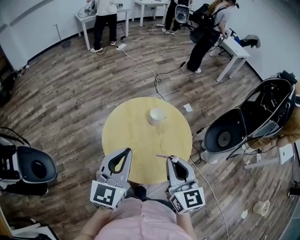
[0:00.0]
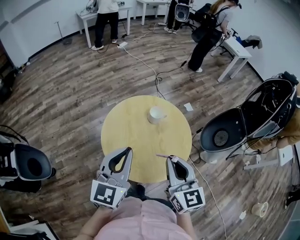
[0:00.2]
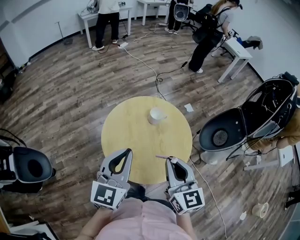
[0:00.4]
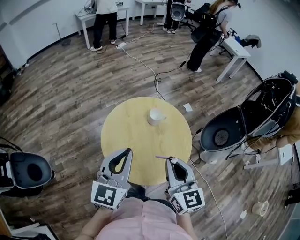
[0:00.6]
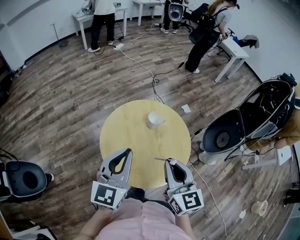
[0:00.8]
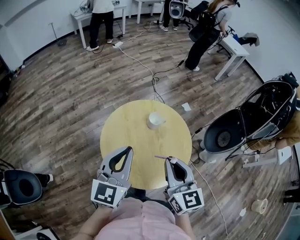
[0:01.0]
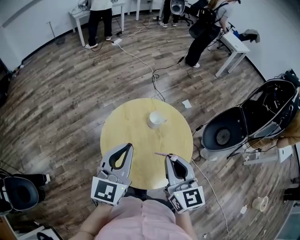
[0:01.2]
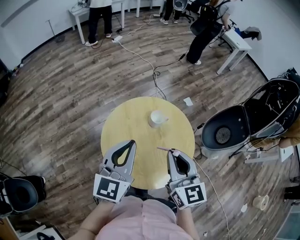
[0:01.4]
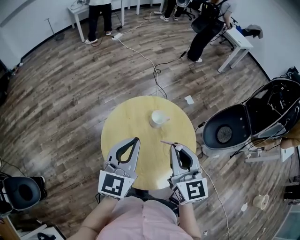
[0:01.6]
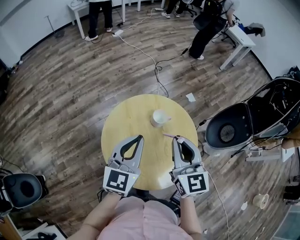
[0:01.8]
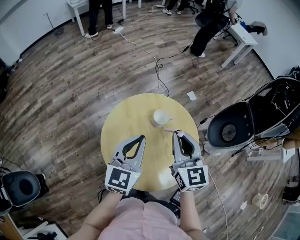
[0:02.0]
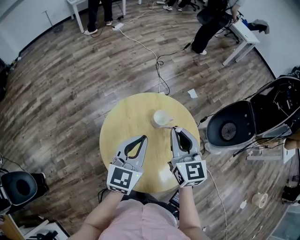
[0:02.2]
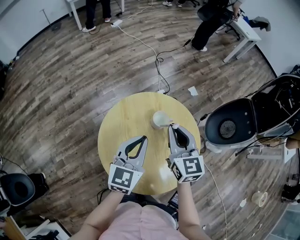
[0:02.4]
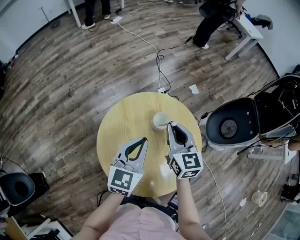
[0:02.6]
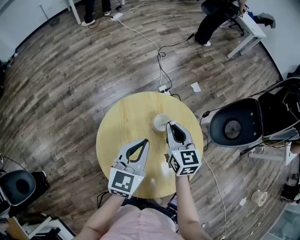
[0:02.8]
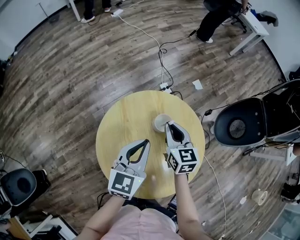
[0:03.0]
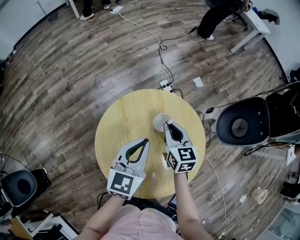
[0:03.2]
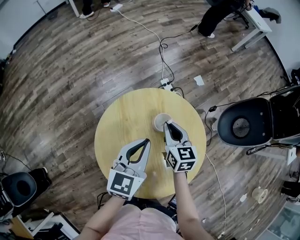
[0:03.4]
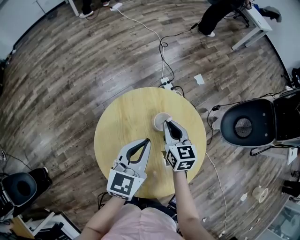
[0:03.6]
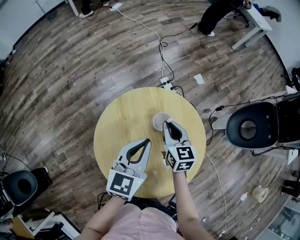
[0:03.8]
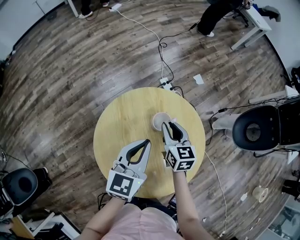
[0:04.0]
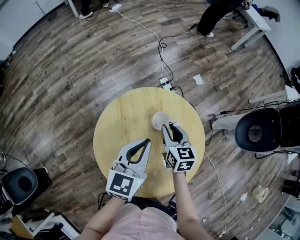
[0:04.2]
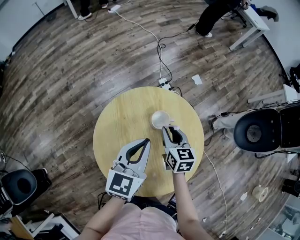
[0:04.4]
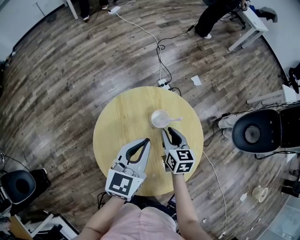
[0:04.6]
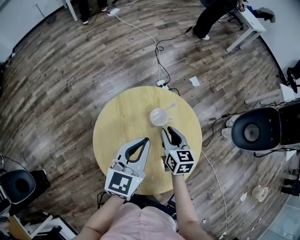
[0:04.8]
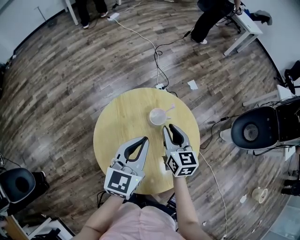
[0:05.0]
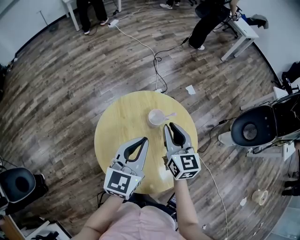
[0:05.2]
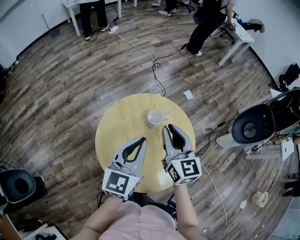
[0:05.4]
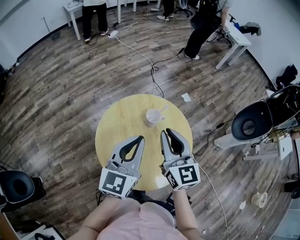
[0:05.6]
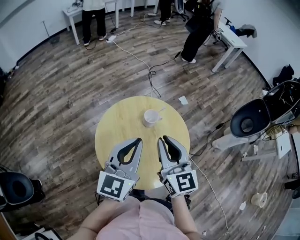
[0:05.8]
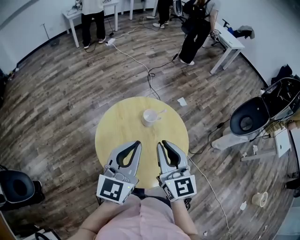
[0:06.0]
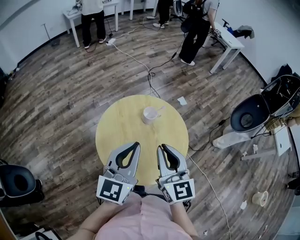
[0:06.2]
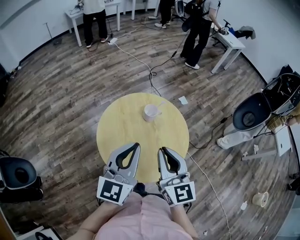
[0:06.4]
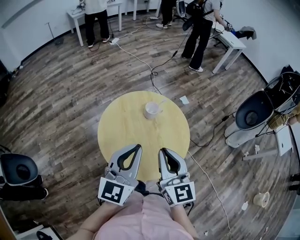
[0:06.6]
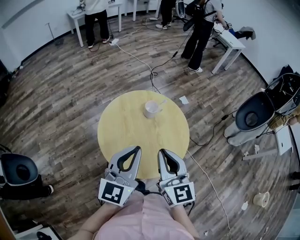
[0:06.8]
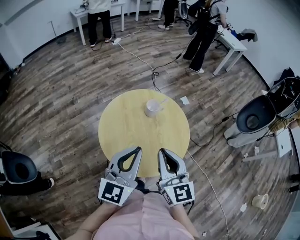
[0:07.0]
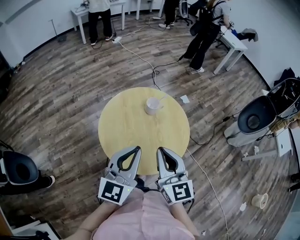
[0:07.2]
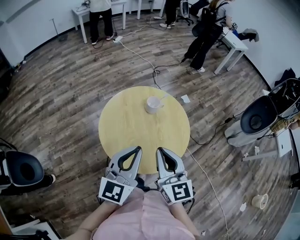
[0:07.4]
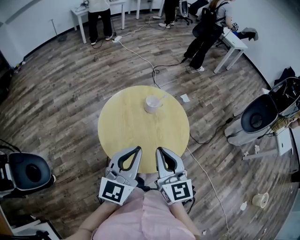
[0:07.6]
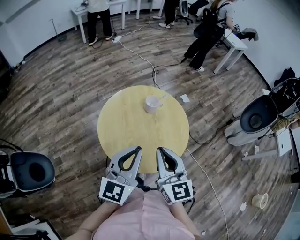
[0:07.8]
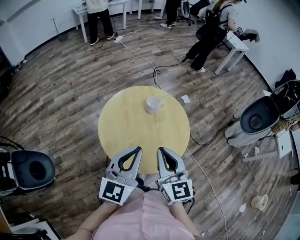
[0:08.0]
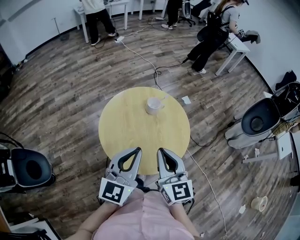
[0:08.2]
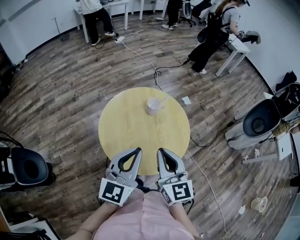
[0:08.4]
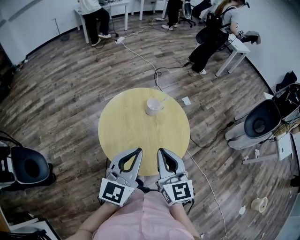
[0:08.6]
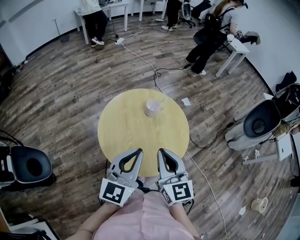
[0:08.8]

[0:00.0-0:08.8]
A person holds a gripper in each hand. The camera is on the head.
0:00.0 to 0:01.4: Both grippers move forward, some 10 cm.
0:01.4 to 0:03.0: The left gripper goes roughly 20 cm downward and forward; the right gripper heads forward and downward, covering some 30 cm.
0:03.0 to 0:04.4: The right gripper heads downward, covering roughly 5 cm.
0:04.4 to 0:05.8: The left gripper travels upward and backward by about 15 cm, while the right gripper shifts some 30 cm upward and backward, and turns by about 30 degrees.
0:05.8 to 0:07.4: The grippers both shift backward by some 15 cm.
0:07.4 to 0:08.8: There are only small adjustments of the grippers.

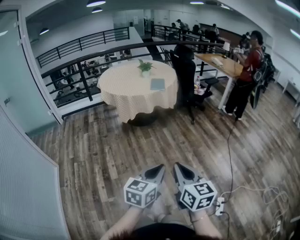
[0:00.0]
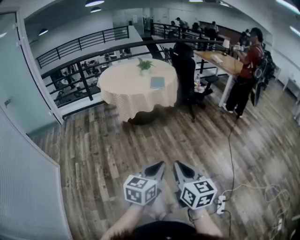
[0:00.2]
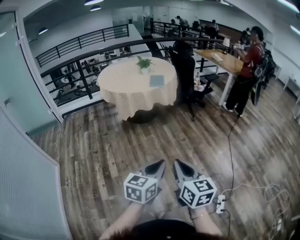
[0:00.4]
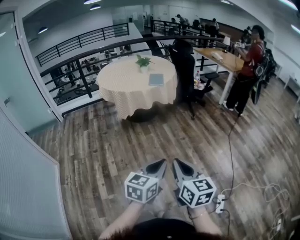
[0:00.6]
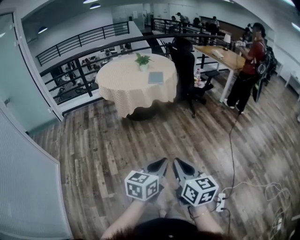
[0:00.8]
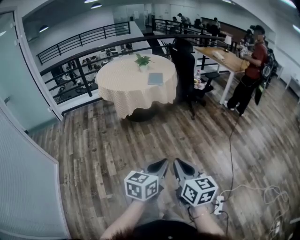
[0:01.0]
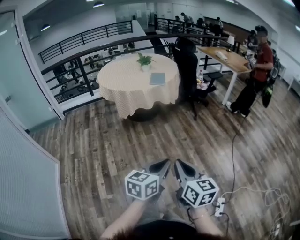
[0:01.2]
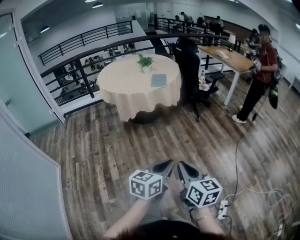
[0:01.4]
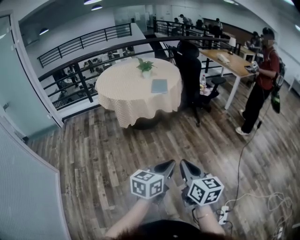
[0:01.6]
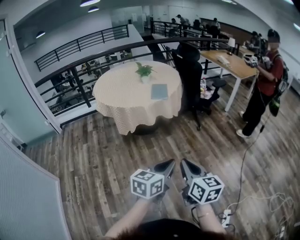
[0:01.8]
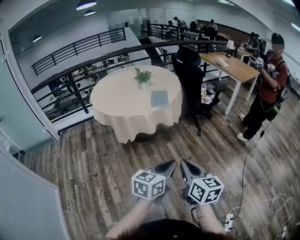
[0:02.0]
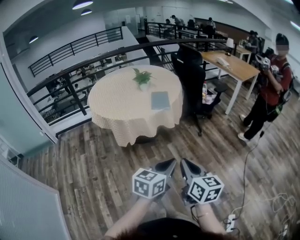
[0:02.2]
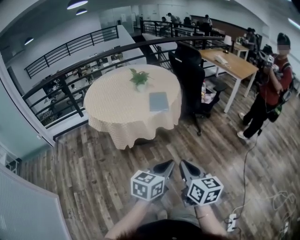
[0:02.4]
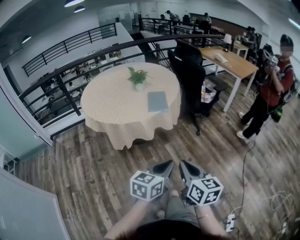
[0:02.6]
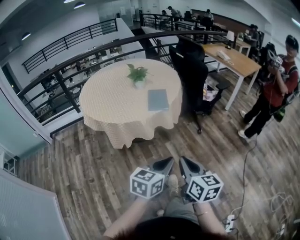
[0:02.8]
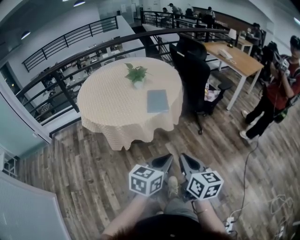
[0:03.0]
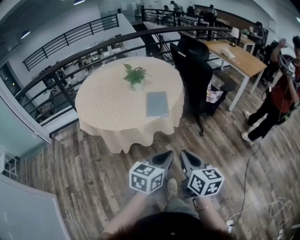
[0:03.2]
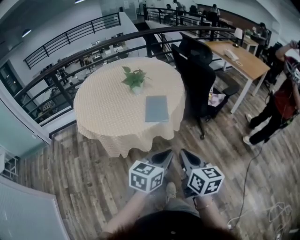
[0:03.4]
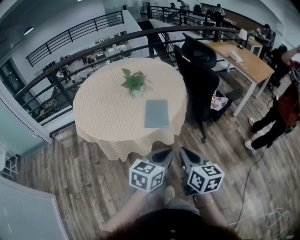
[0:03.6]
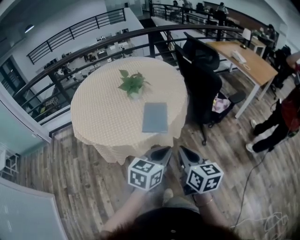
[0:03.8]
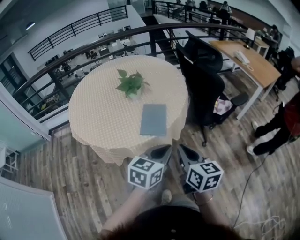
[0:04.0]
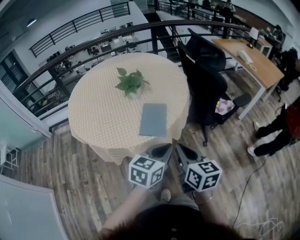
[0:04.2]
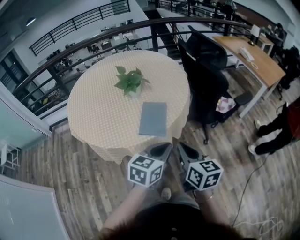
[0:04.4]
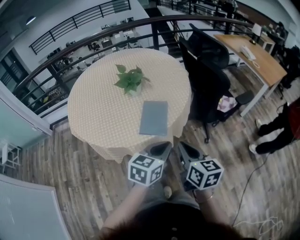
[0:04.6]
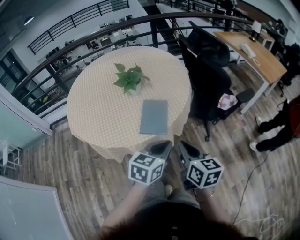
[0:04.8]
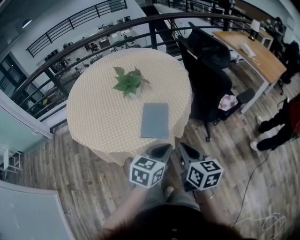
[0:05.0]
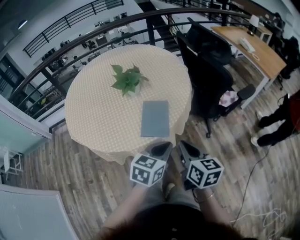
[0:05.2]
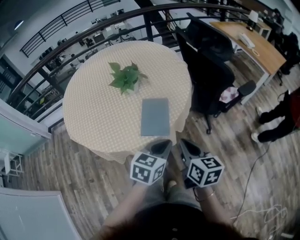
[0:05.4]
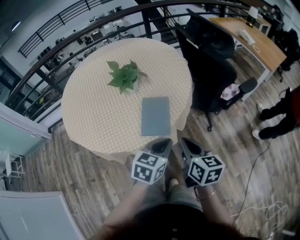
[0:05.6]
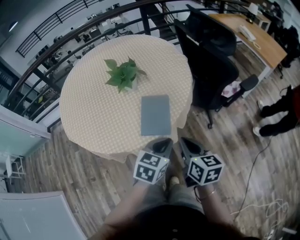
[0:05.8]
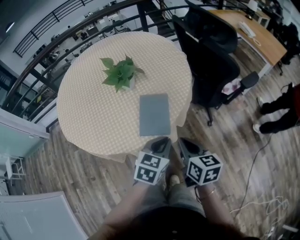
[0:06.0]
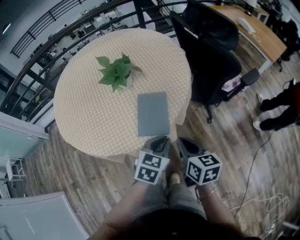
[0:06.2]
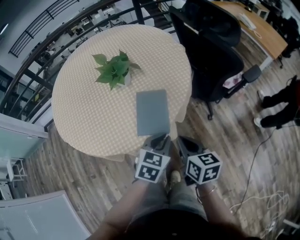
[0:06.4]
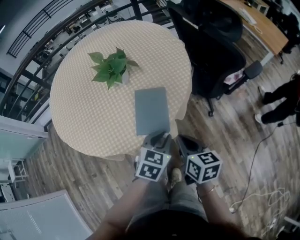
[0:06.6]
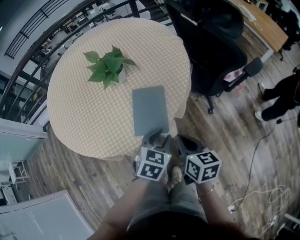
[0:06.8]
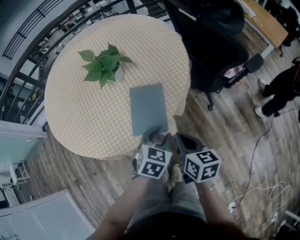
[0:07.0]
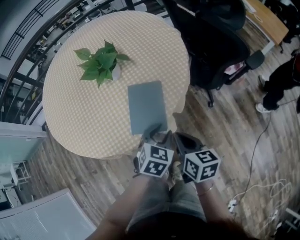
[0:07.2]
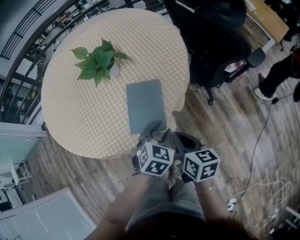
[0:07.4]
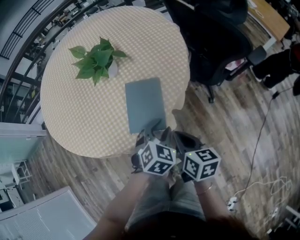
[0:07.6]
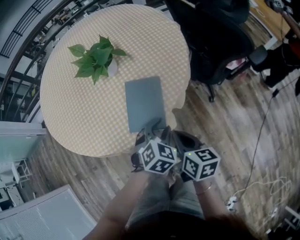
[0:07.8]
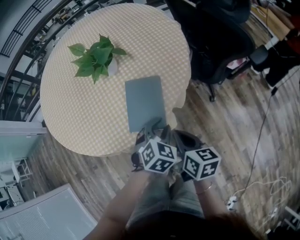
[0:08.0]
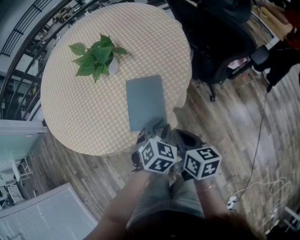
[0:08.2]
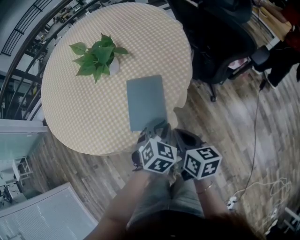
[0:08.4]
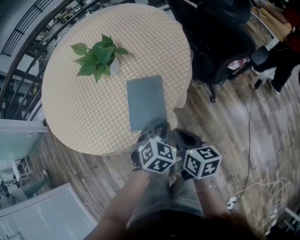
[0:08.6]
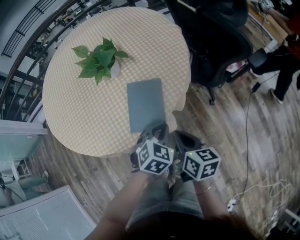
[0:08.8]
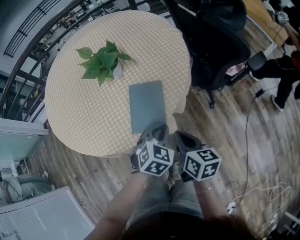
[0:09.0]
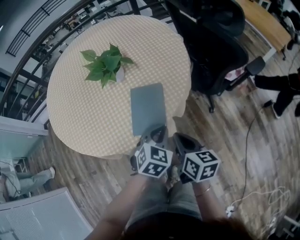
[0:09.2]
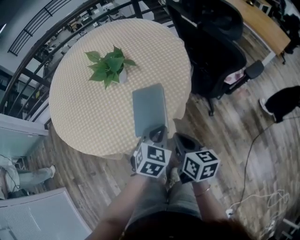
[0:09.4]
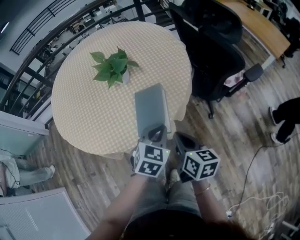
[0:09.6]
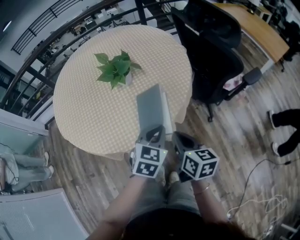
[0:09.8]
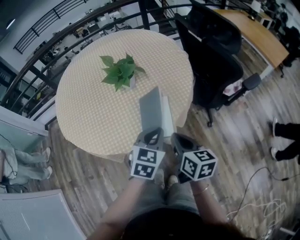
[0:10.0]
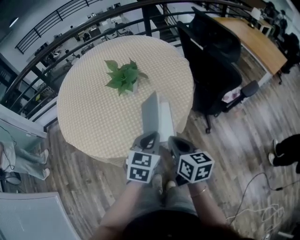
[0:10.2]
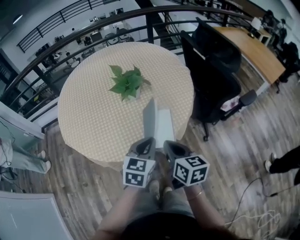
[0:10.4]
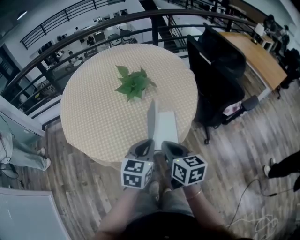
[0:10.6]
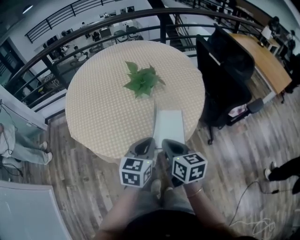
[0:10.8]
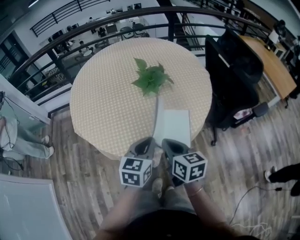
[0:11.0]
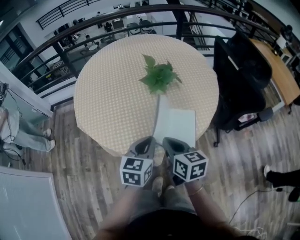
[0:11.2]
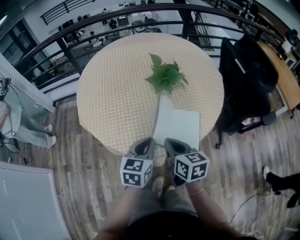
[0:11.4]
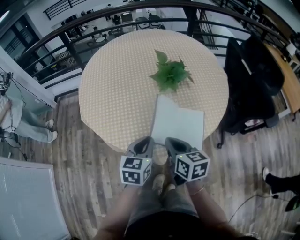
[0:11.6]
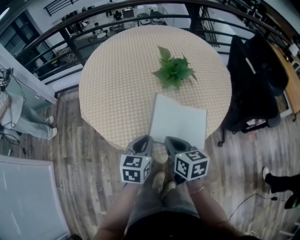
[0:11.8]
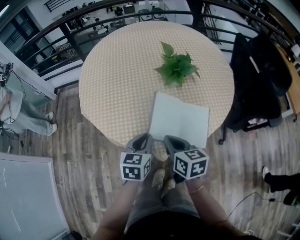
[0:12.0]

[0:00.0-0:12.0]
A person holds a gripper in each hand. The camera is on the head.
0:00.0 to 0:01.6: The two grippers go some 15 cm forward.
0:01.6 to 0:03.0: Both grippers move forward, some 30 cm.
0:03.0 to 0:04.4: Both grippers travel together forward, about 30 cm.
0:04.4 to 0:06.0: The two grippers go some 10 cm downward and forward.
0:06.0 to 0:07.6: The left gripper shifts some 10 cm downward and forward, turns by about 30 degrees, and opens its fingers. The right gripper shifts roughly 10 cm downward.
0:07.6 to 0:09.0: The left gripper closes.
0:09.0 to 0:10.4: Both grippers move upward and to the left, about 15 cm. The left gripper changes its angle by approximately 30 degrees.
0:10.4 to 0:12.0: Both grippers travel together to the left and downward, approximately 15 cm. The left gripper turns by roughly 20 degrees.

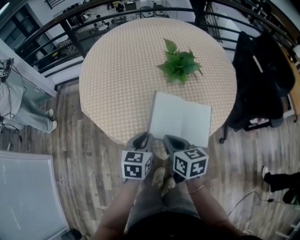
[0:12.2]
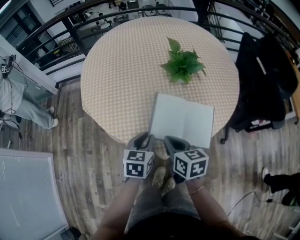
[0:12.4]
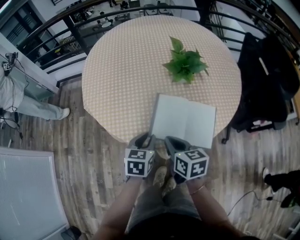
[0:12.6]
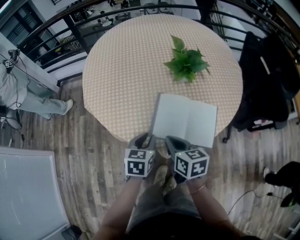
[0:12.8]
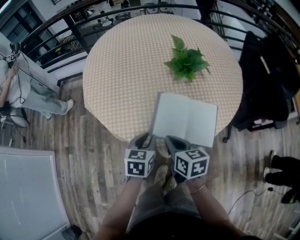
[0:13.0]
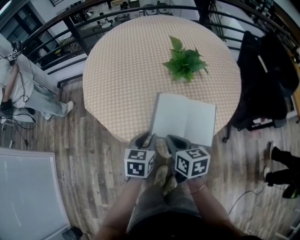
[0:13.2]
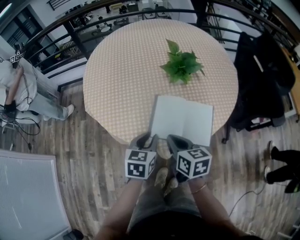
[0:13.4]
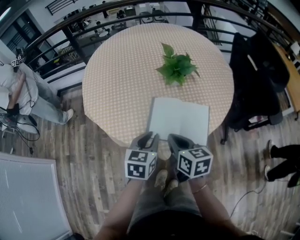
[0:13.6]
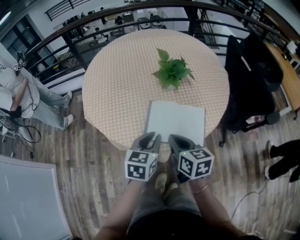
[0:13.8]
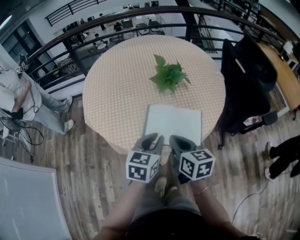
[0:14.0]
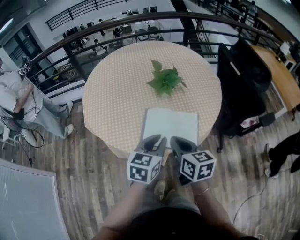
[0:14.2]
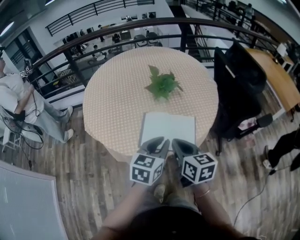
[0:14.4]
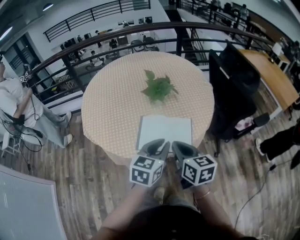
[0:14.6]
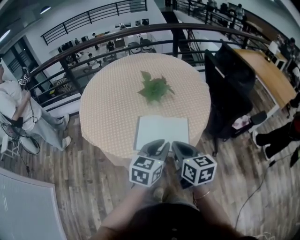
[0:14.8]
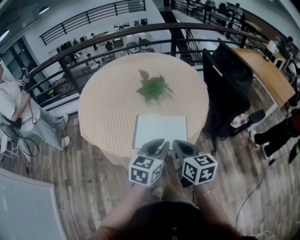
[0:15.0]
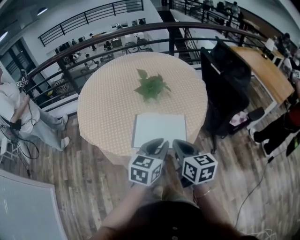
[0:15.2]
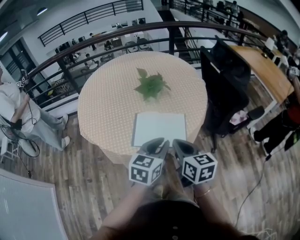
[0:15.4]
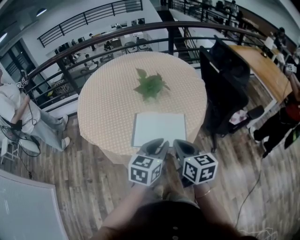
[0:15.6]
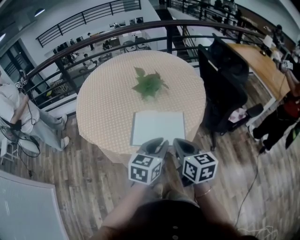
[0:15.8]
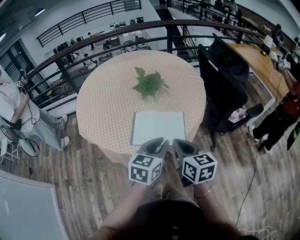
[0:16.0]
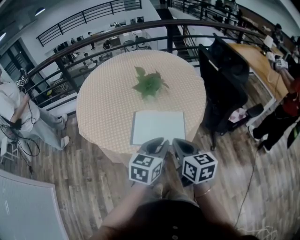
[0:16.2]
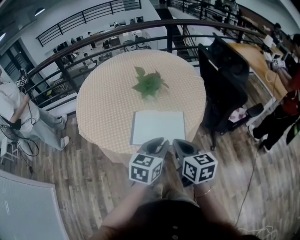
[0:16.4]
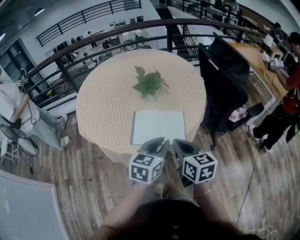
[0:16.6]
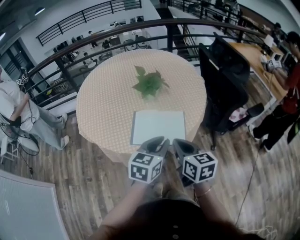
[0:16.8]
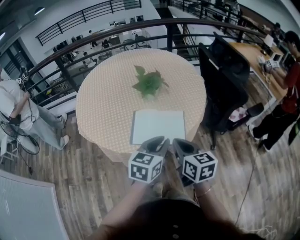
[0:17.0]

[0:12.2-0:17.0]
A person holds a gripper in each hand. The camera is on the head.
0:12.2 to 0:13.8: The right gripper changes place by approximately 5 cm. Meanwhile the left gripper shifts approximately 5 cm upward.
0:13.8 to 0:15.4: Both grippers move to the right and upward, about 10 cm.
0:15.4 to 0:17.0: Both grippers stay put.
